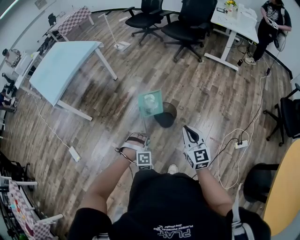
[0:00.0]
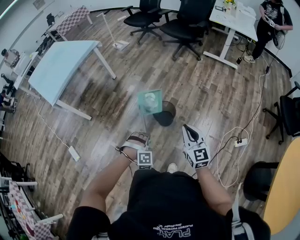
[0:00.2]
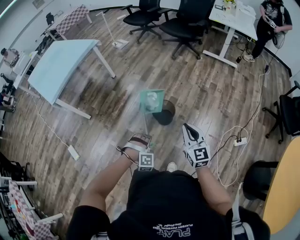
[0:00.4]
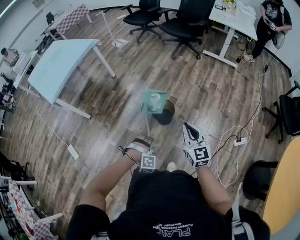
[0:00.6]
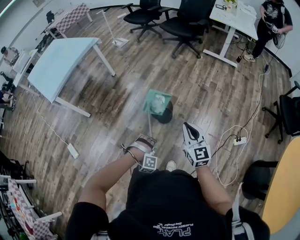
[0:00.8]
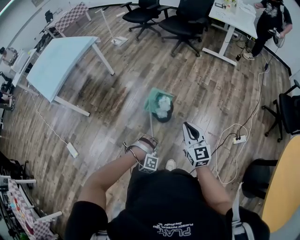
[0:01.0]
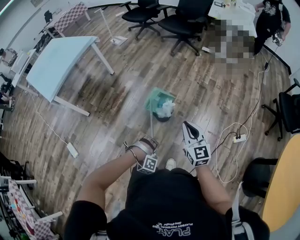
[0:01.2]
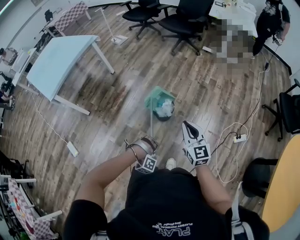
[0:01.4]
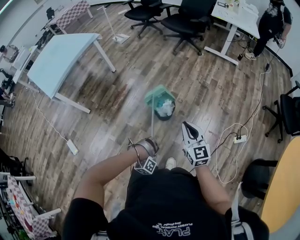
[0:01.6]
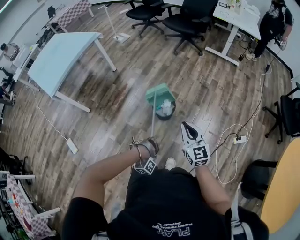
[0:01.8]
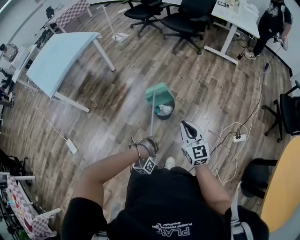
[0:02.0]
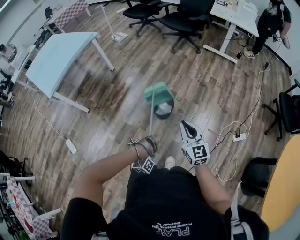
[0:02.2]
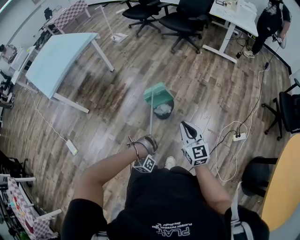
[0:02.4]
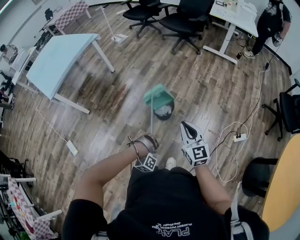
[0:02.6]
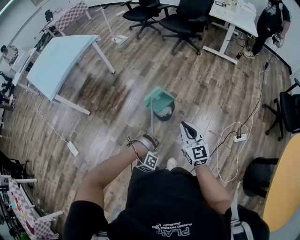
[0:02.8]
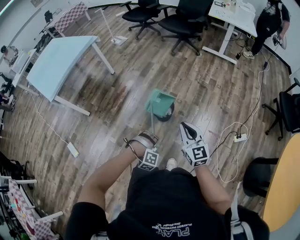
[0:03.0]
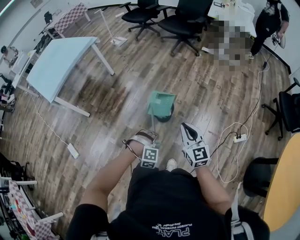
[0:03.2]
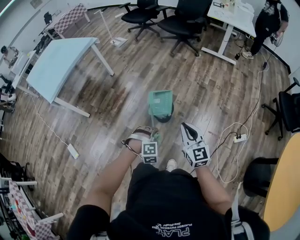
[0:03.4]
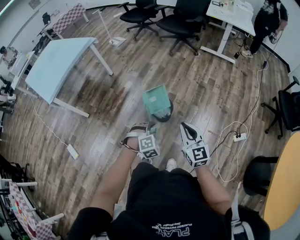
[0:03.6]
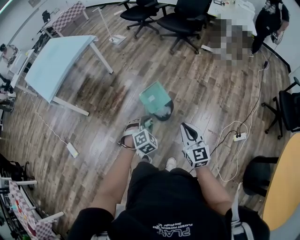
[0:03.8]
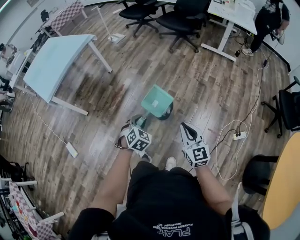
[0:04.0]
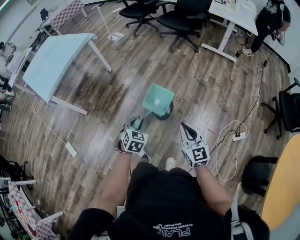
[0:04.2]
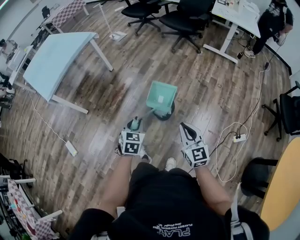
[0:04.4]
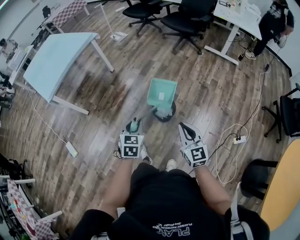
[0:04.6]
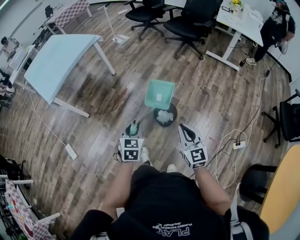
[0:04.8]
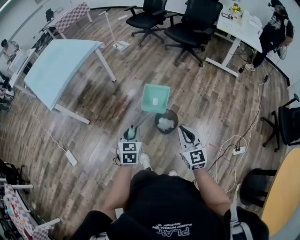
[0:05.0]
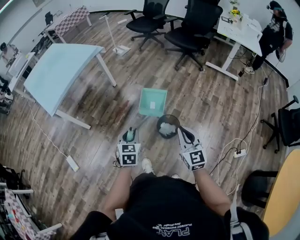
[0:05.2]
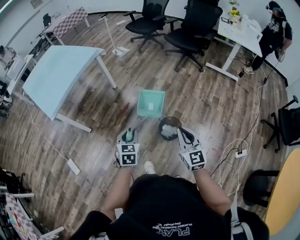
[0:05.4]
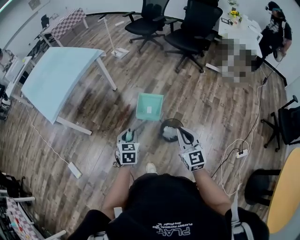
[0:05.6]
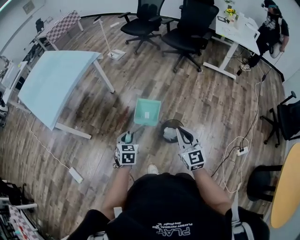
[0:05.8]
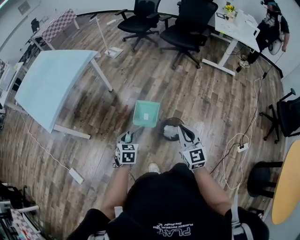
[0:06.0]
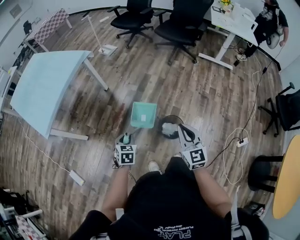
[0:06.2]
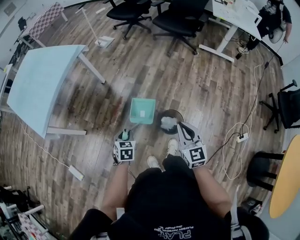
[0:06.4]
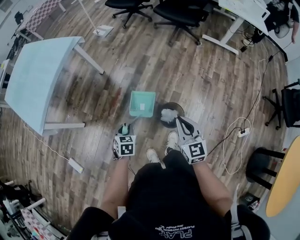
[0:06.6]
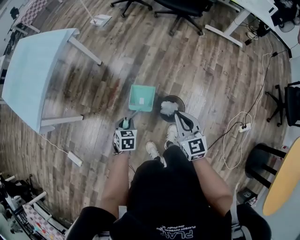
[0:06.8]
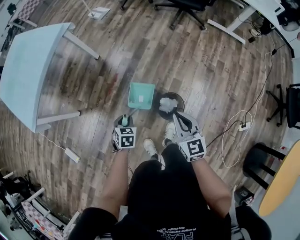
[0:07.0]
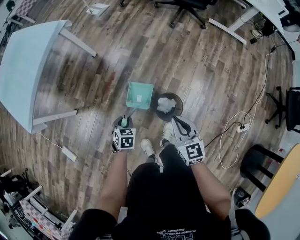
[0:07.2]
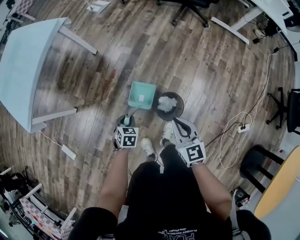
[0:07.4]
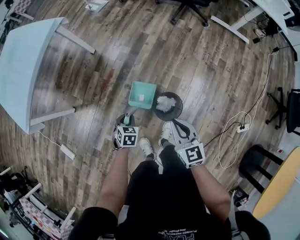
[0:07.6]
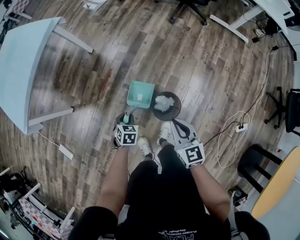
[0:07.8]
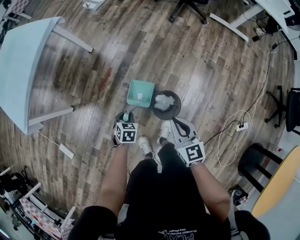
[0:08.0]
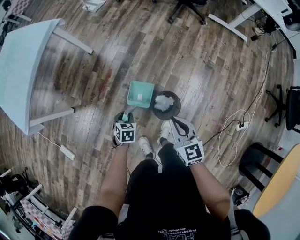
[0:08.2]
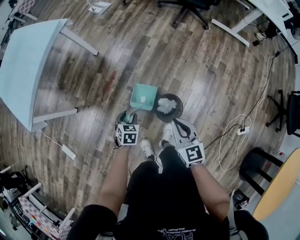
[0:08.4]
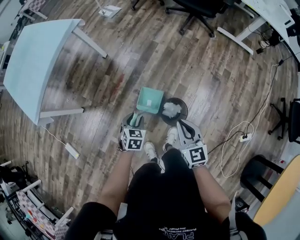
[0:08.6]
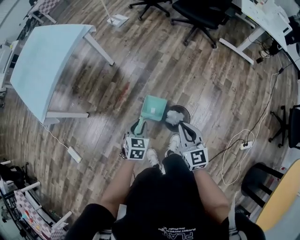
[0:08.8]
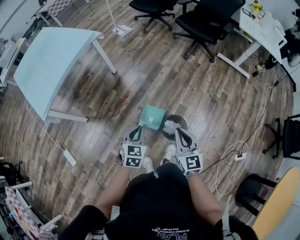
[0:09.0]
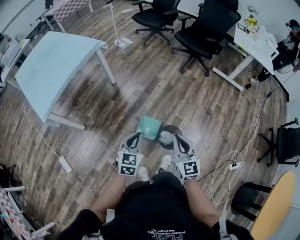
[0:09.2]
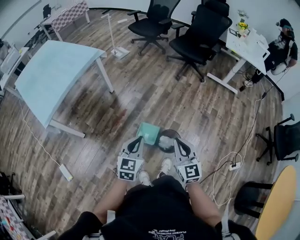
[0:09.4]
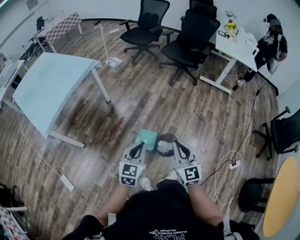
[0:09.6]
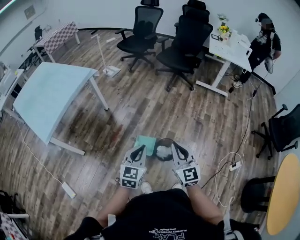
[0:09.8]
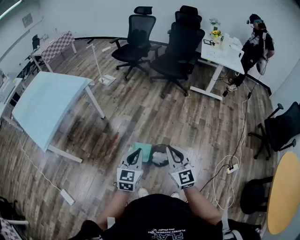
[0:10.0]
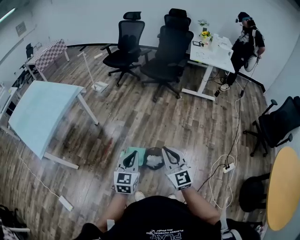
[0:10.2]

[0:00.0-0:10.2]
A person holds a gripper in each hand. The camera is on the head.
0.0 to 1.4 s: The left gripper moves backward and downward, roughly 10 cm, and turns by roughly 40 degrees.
3.0 to 4.4 s: The left gripper moves forward, upward and to the left, roughly 20 cm, and rolls counterclockwise, seen from behind, by roughly 100 degrees.
4.4 to 5.8 s: The left gripper heads to the left and forward, covering some 25 cm, while the right gripper moves forward and to the left, approximately 25 cm.
5.8 to 7.2 s: The two grippers go about 20 cm downward and forward.
7.2 to 8.8 s: The right gripper moves roughly 5 cm. Meanwhile the left gripper is displaced upward by approximately 10 cm.
8.8 to 10.2 s: The two grippers go about 25 cm upward and backward. The left gripper angles its fingers upward, by roughly 30 degrees, and closes its fingers. Meanwhile the right gripper swivels approximately 20 degrees.

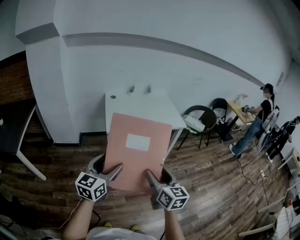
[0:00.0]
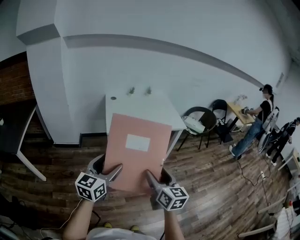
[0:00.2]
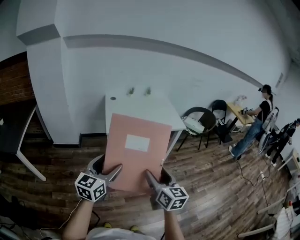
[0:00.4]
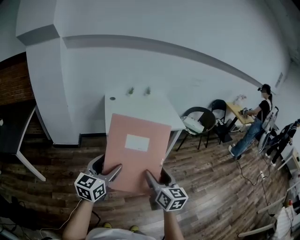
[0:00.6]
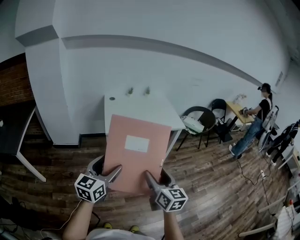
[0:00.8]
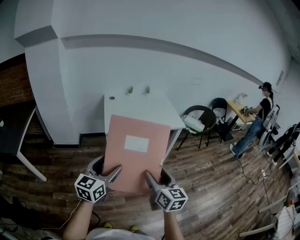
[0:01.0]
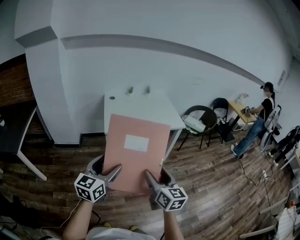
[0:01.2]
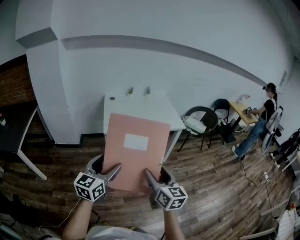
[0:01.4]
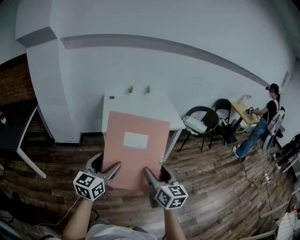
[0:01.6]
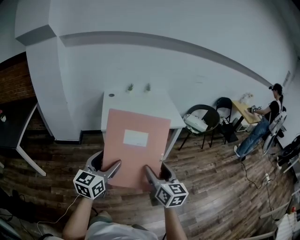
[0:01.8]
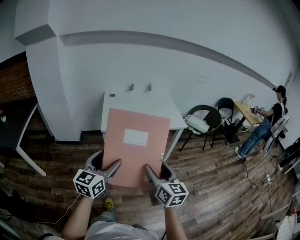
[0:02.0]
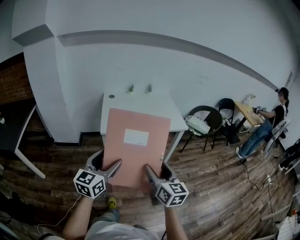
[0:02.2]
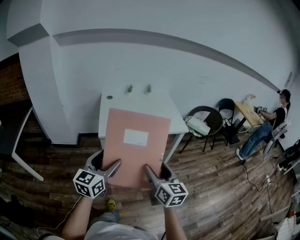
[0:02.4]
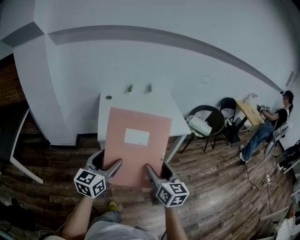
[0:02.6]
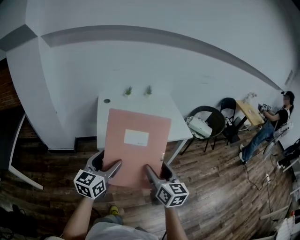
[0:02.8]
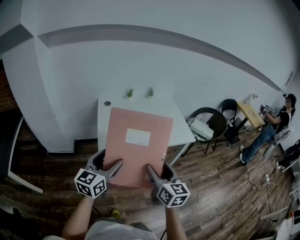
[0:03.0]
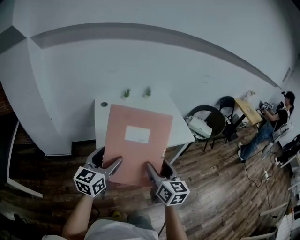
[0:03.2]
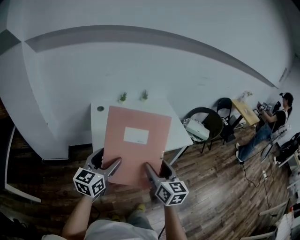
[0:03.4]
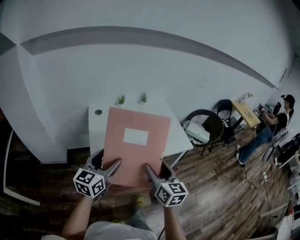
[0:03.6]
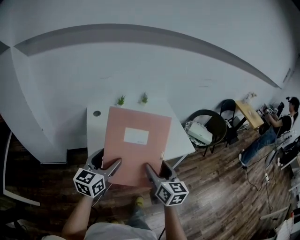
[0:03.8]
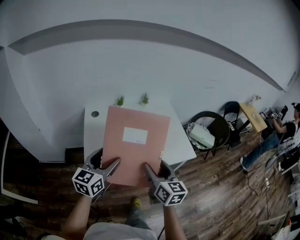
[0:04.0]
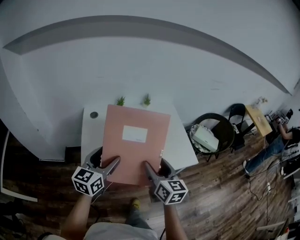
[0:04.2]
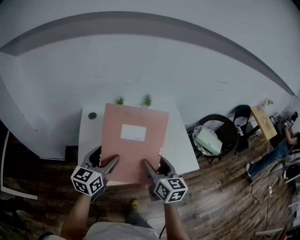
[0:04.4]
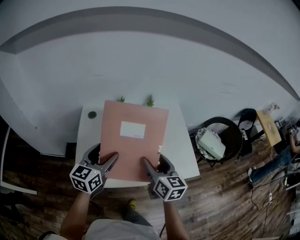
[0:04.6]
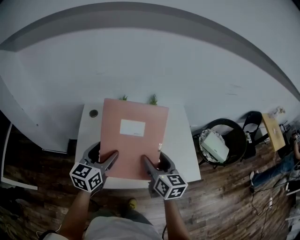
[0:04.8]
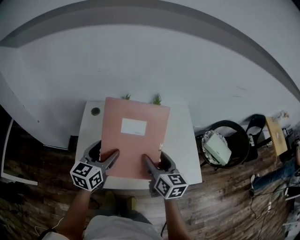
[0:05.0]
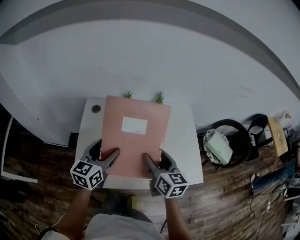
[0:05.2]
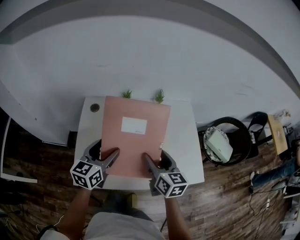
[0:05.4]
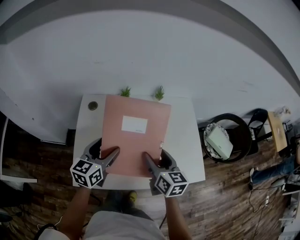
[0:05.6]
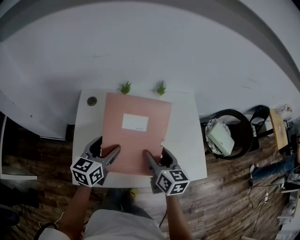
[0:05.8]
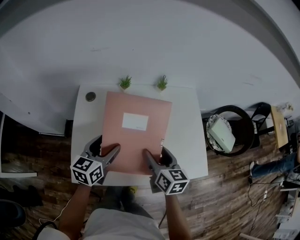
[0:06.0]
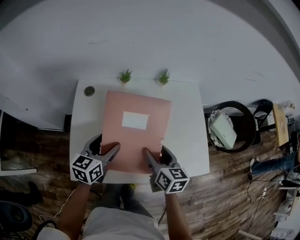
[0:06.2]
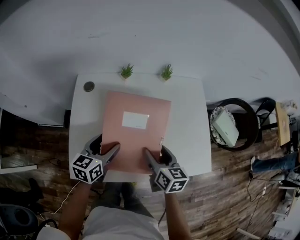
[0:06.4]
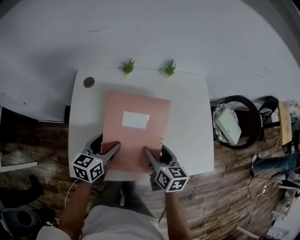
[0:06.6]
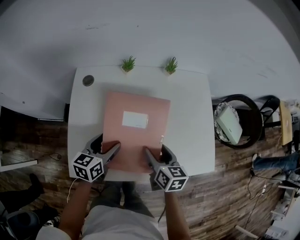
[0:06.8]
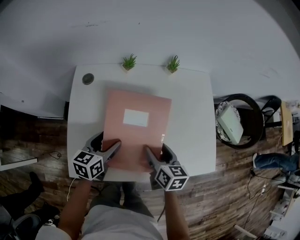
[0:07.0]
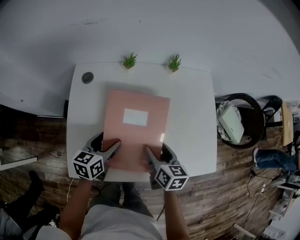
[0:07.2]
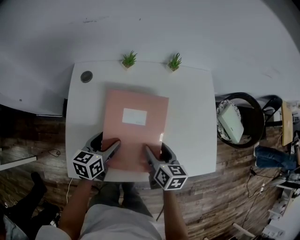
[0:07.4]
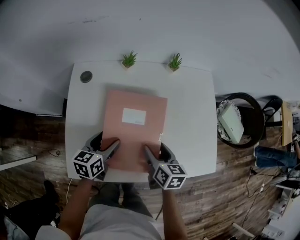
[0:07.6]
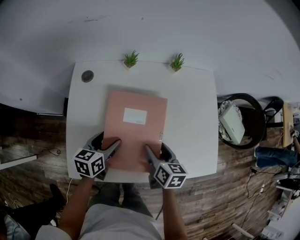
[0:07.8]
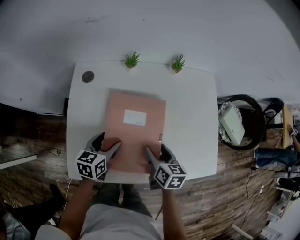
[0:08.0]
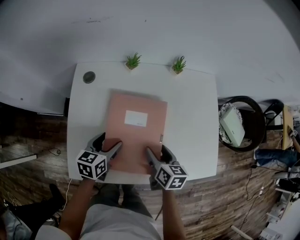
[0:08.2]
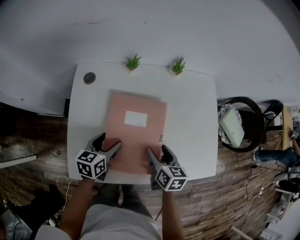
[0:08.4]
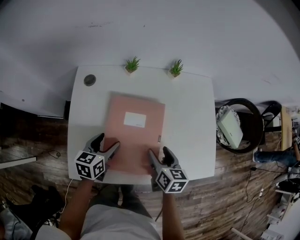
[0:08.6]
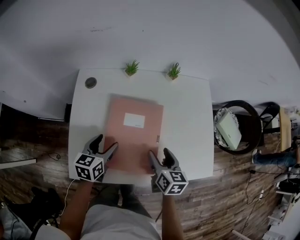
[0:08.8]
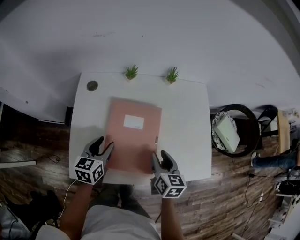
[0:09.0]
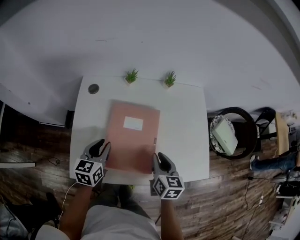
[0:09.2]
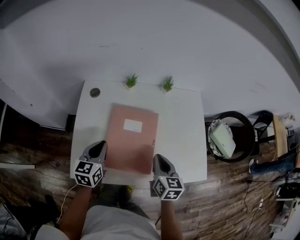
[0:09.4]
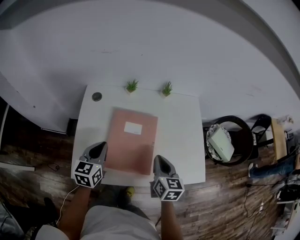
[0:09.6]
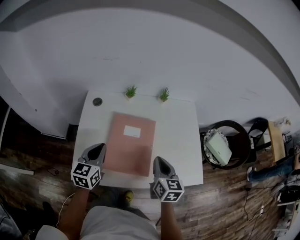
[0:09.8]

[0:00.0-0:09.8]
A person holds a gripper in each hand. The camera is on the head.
0.0 to 1.4 s: There are only small adjustments of the grippers.
1.4 to 2.8 s: The two grippers go about 25 cm forward.
2.8 to 4.2 s: Both grippers move forward, approximately 35 cm.
4.2 to 5.6 s: The right gripper shifts roughly 20 cm forward. Meanwhile the left gripper travels forward and downward by roughly 20 cm.
5.6 to 7.0 s: The grippers both shift downward by about 15 cm.
7.0 to 8.4 s: The grippers stay close to where they were, moving slightly.
8.4 to 9.8 s: The two grippers go some 15 cm upward. The left gripper swivels some 20 degrees, and closes its fingers. Meanwhile the right gripper closes up.

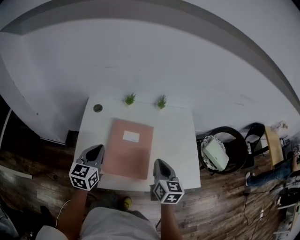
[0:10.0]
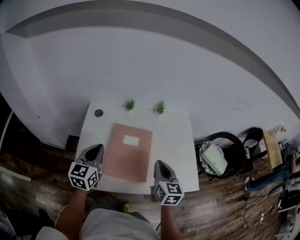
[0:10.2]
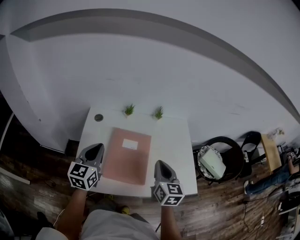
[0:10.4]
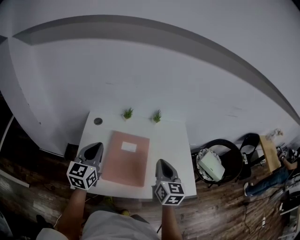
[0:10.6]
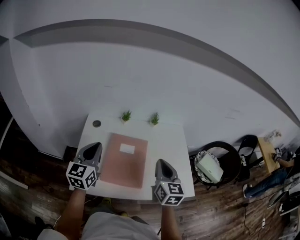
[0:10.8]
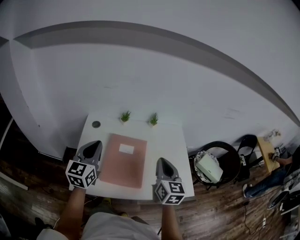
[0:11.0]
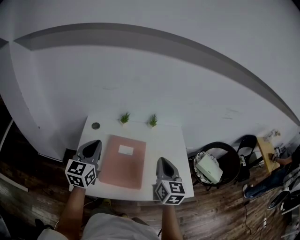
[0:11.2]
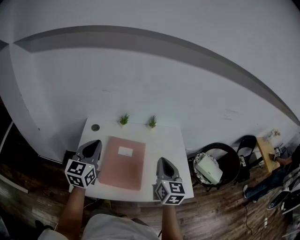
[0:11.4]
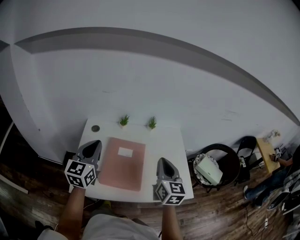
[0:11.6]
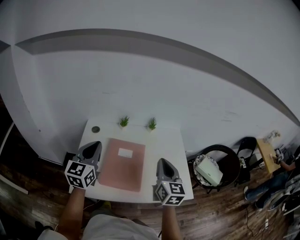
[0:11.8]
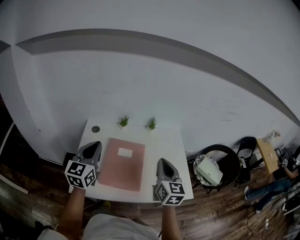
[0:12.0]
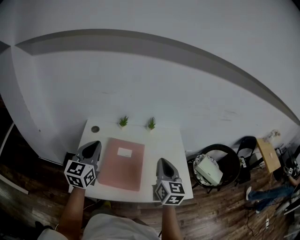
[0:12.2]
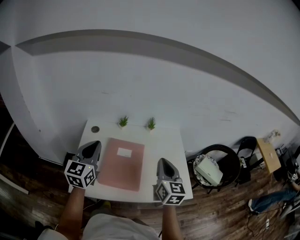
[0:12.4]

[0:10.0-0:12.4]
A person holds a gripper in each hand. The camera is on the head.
10.0 to 11.2 s: Both grippers travel together upward, about 10 cm.
11.2 to 12.4 s: There are only small adjustments of the grippers.

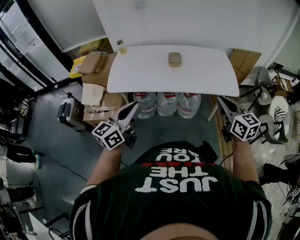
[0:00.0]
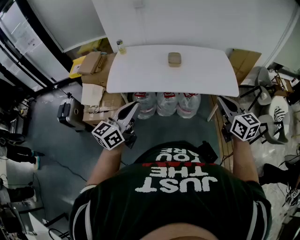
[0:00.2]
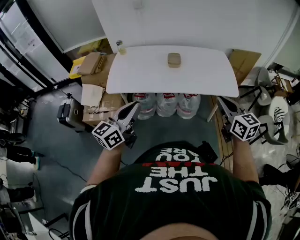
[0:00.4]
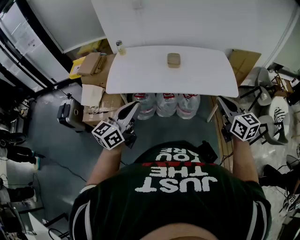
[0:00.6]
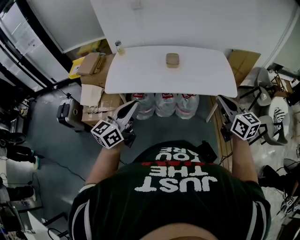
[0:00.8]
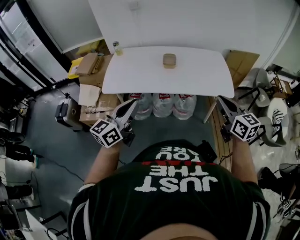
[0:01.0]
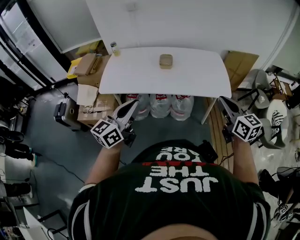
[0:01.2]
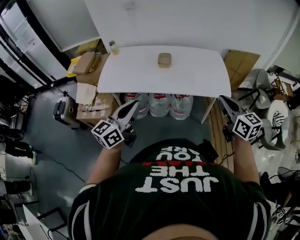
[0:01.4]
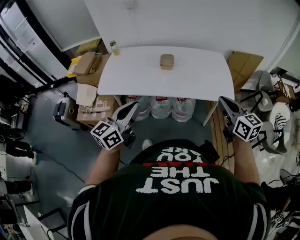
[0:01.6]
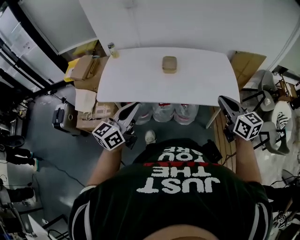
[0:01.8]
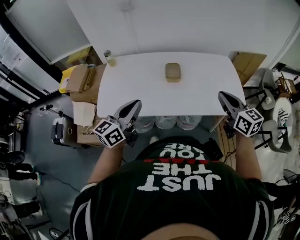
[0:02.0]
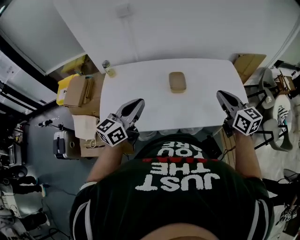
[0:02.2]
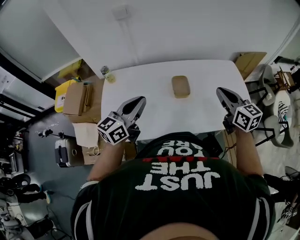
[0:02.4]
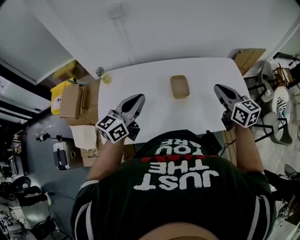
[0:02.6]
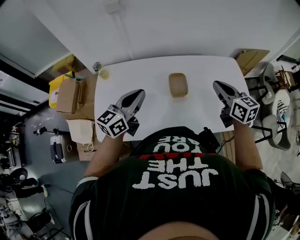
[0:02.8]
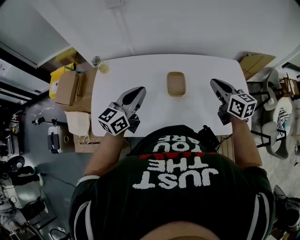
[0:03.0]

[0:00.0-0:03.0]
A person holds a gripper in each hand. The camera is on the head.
0.0 to 1.6 s: The left gripper moves to the right, approximately 10 cm. The right gripper is displaced to the right and forward by approximately 10 cm.
1.6 to 3.0 s: The two grippers travel together, forward, about 50 cm.
